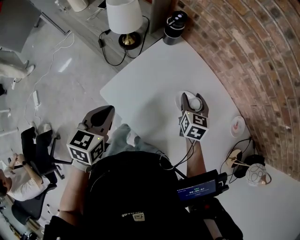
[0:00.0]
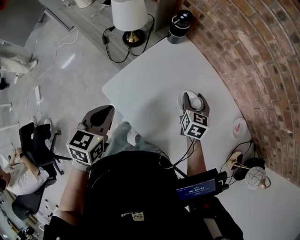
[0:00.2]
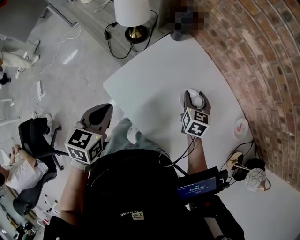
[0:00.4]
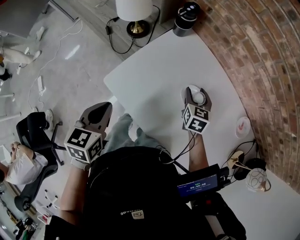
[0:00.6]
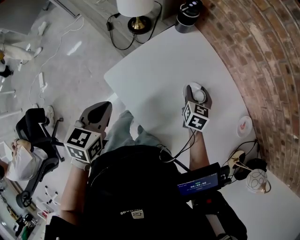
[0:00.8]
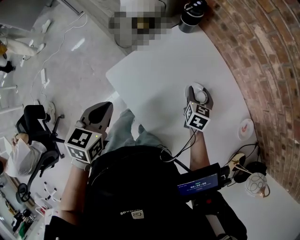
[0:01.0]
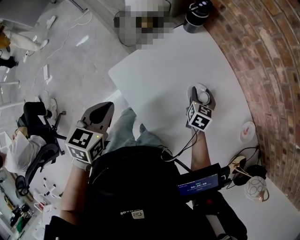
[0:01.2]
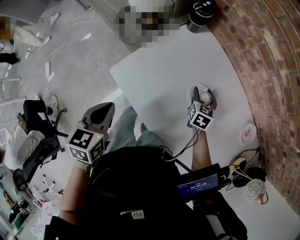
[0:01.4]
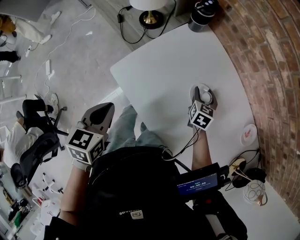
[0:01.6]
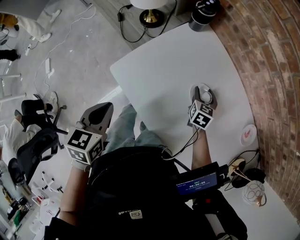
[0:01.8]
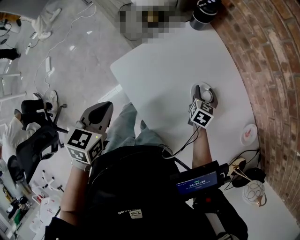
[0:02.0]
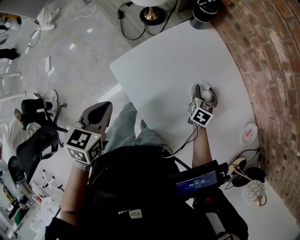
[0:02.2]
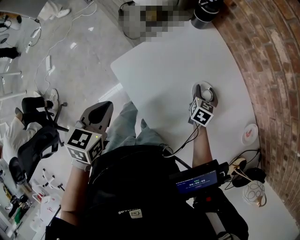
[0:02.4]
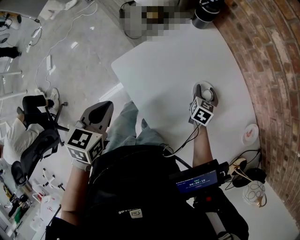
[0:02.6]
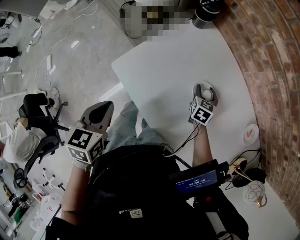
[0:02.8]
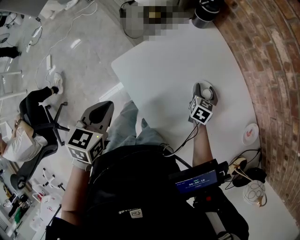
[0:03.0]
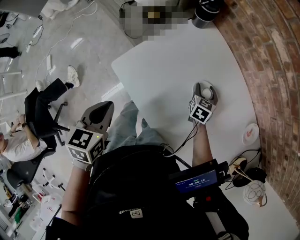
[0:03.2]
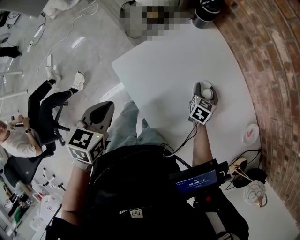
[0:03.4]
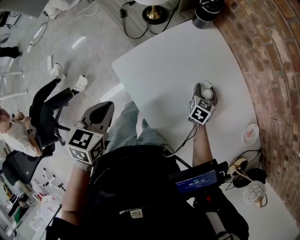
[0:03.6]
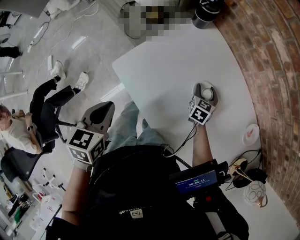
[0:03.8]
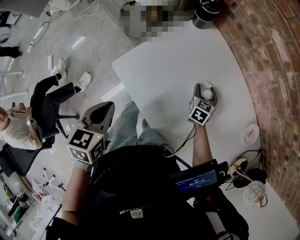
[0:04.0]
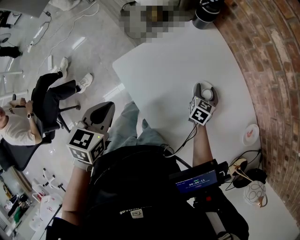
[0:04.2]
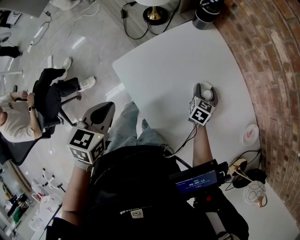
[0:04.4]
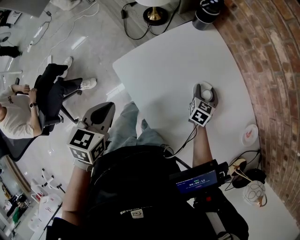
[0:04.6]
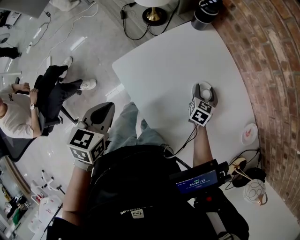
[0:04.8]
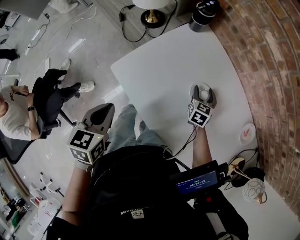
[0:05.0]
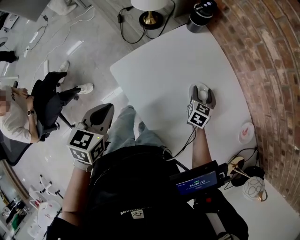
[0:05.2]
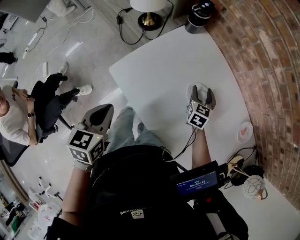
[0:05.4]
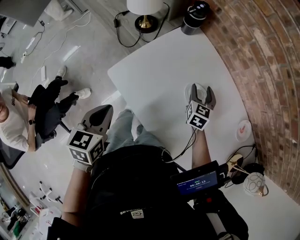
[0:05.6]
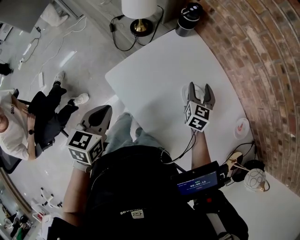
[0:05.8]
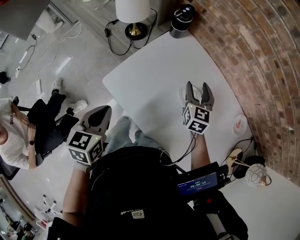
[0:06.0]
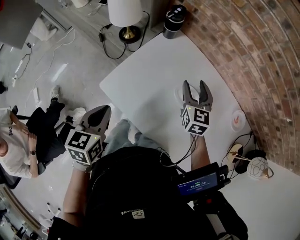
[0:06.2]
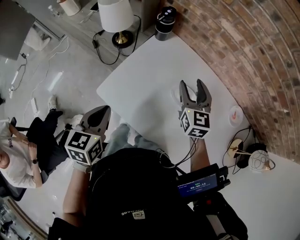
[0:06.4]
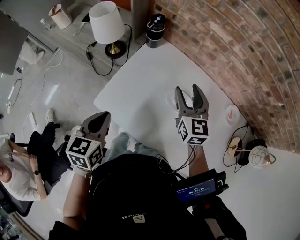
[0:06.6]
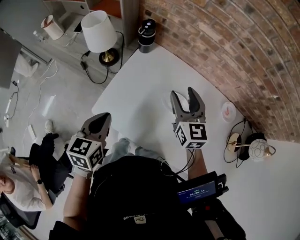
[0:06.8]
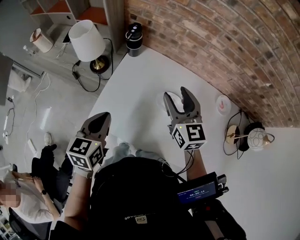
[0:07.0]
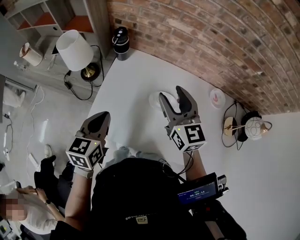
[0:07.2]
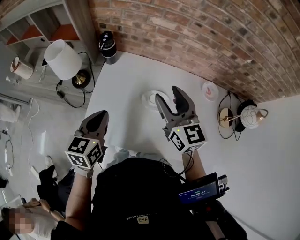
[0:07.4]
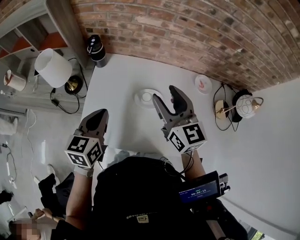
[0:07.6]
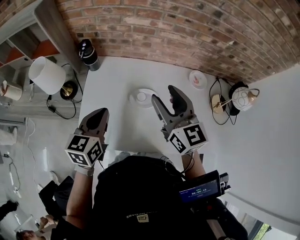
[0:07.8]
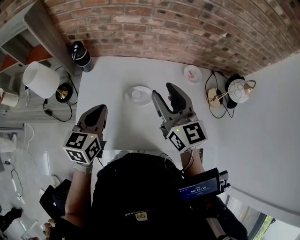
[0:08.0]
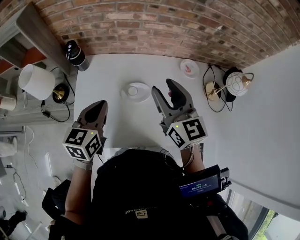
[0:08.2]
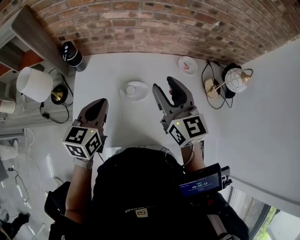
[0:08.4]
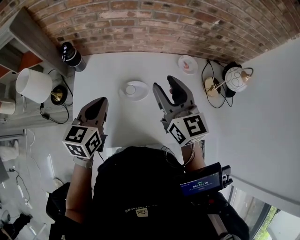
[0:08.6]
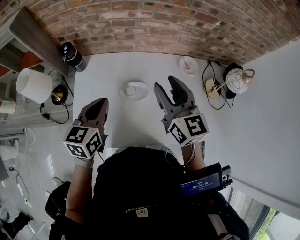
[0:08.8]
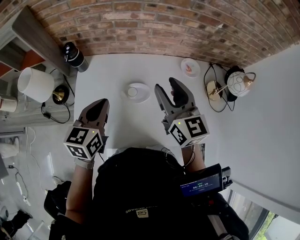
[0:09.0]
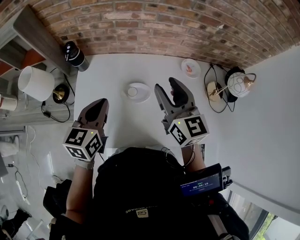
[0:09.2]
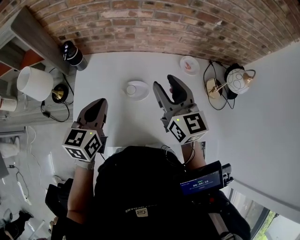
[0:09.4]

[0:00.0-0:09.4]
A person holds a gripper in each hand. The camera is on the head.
0.0 to 1.6 s: The left gripper moves backward, about 5 cm, while the right gripper shifts about 10 cm downward.
1.6 to 3.2 s: The grippers make only small movements.
3.2 to 4.8 s: The two grippers keep their place.
4.8 to 6.2 s: The right gripper is displaced upward by some 20 cm.
6.2 to 7.8 s: The left gripper goes about 20 cm forward, to the right and upward, and turns by some 40 degrees, while the right gripper travels upward and backward by roughly 20 cm, and changes its angle by some 20 degrees.
7.8 to 9.4 s: The two grippers go about 5 cm to the right.

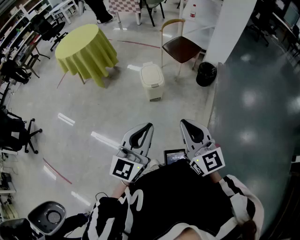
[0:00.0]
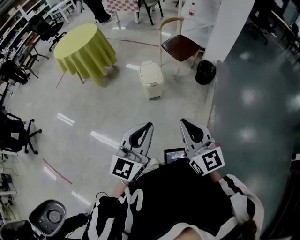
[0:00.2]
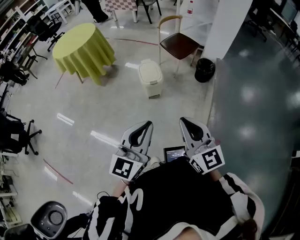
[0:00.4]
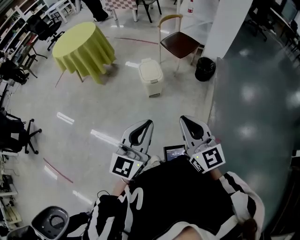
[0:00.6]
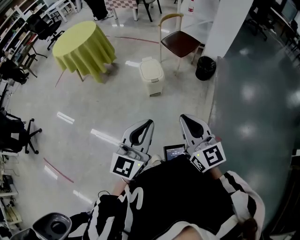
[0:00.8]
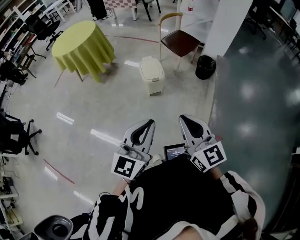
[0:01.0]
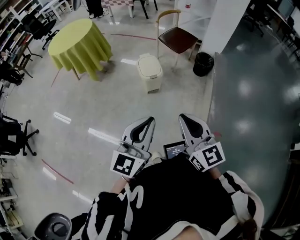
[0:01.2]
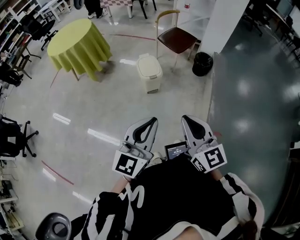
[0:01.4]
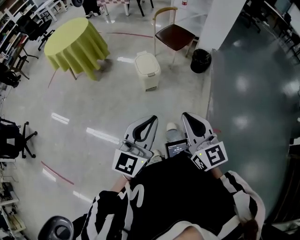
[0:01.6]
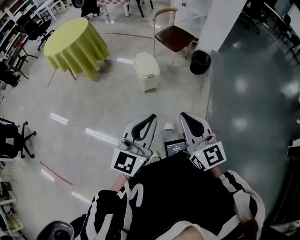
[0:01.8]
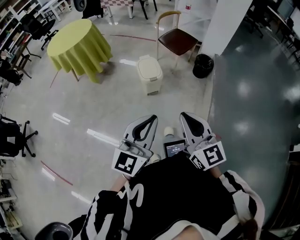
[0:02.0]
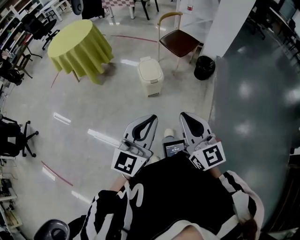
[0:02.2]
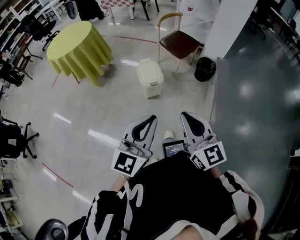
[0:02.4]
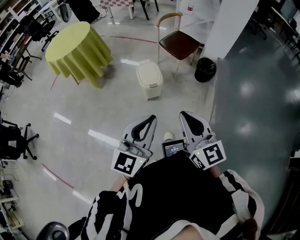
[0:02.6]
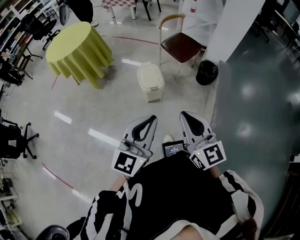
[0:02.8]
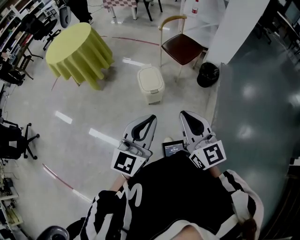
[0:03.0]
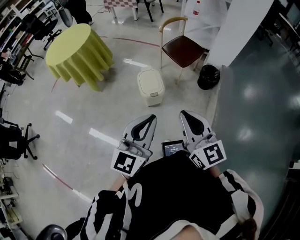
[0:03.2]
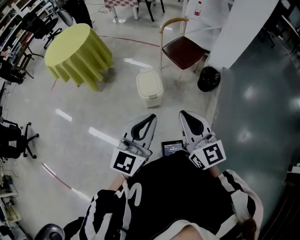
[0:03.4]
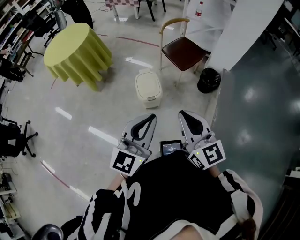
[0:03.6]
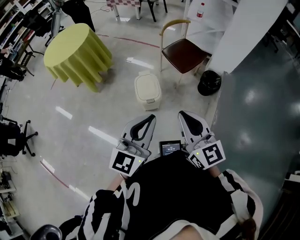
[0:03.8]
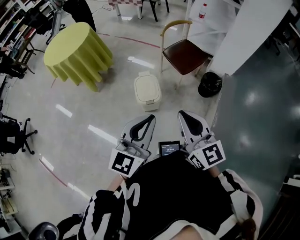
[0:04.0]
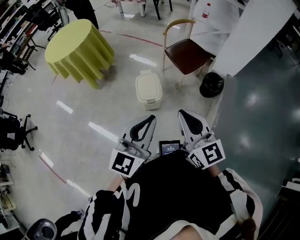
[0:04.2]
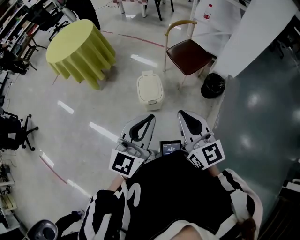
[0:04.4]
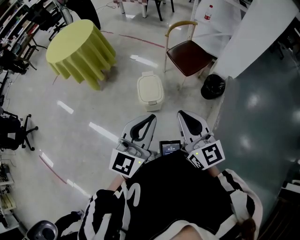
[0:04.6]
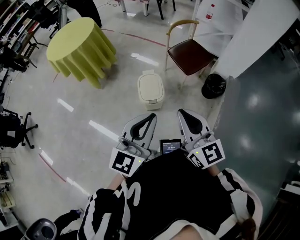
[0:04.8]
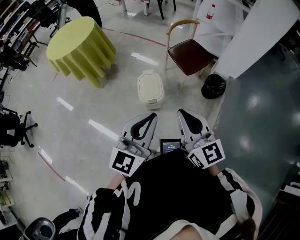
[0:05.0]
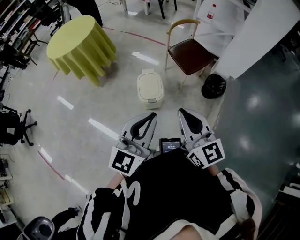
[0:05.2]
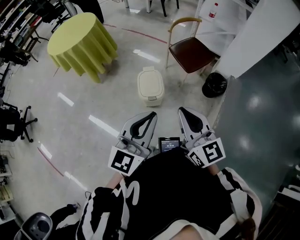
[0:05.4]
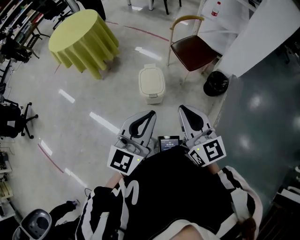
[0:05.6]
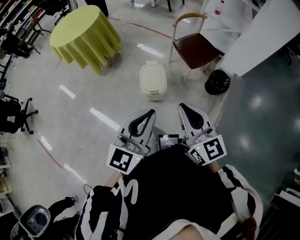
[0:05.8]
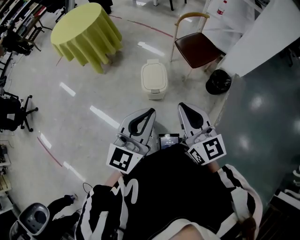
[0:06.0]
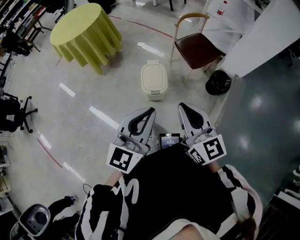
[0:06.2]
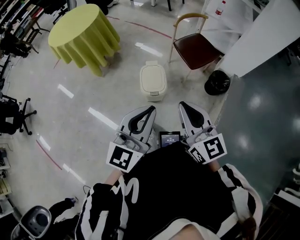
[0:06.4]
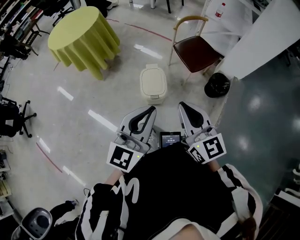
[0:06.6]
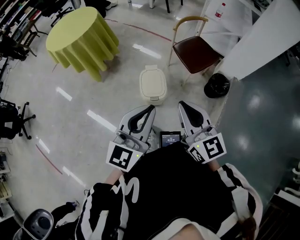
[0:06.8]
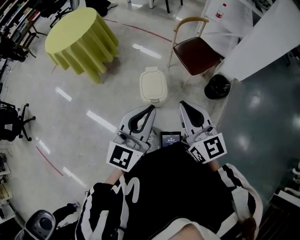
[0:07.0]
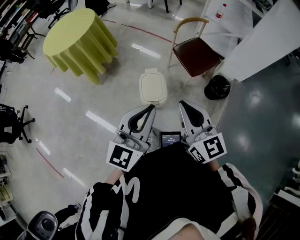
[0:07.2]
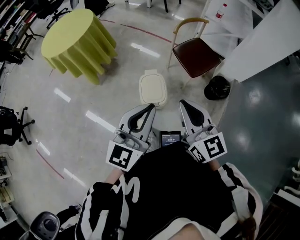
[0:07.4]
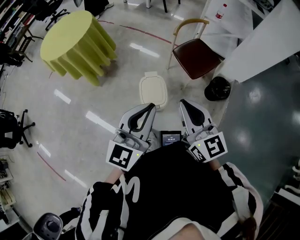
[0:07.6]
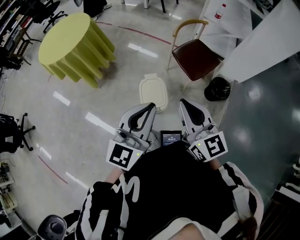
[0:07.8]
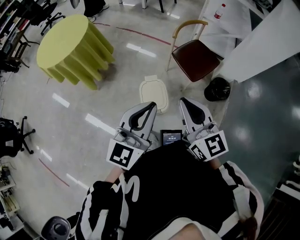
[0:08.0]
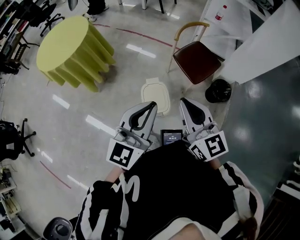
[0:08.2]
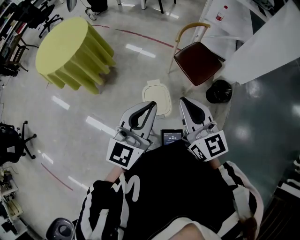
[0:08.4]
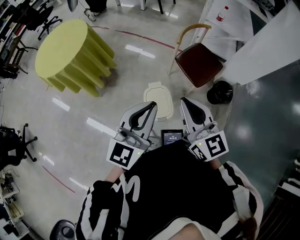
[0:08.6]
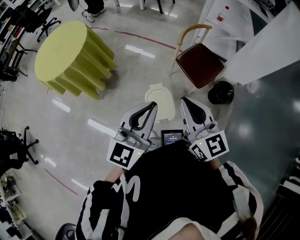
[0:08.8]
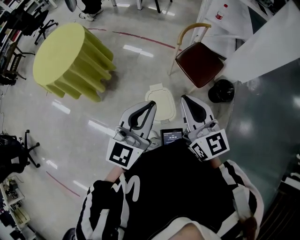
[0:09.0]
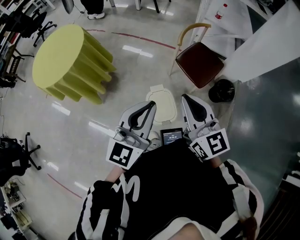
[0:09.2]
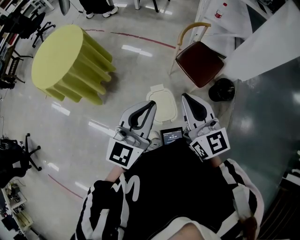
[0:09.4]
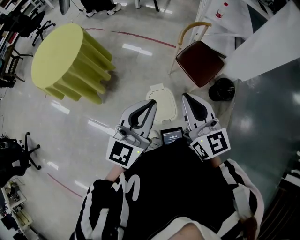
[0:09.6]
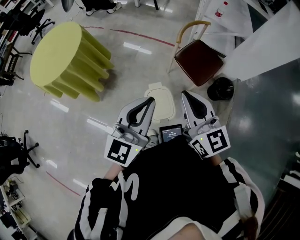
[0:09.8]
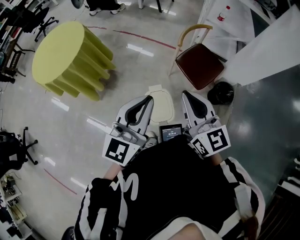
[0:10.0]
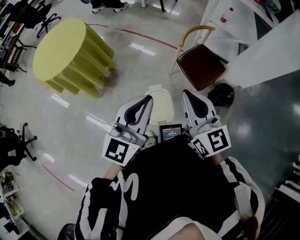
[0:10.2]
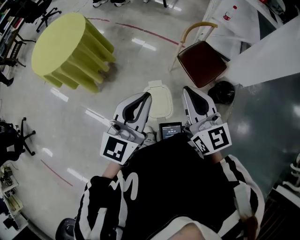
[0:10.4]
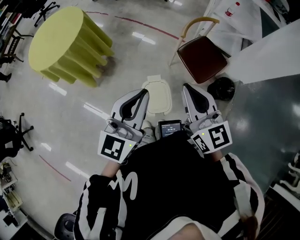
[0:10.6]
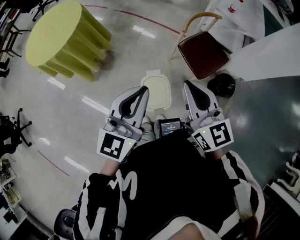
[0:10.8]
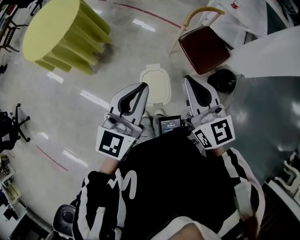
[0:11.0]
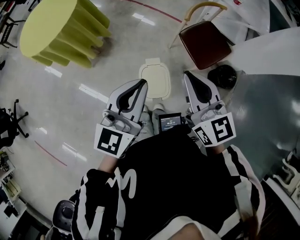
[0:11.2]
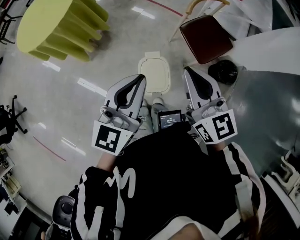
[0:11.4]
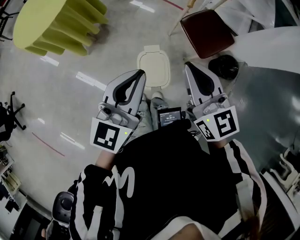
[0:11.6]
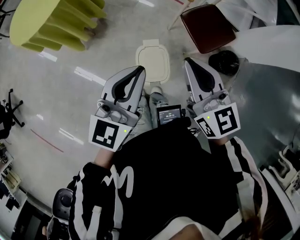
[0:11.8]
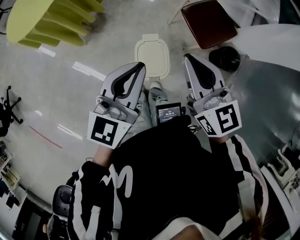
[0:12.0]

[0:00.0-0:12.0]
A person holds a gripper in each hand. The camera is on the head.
0.0 to 1.6 s: The grippers stay close to where they were, moving slightly.
1.6 to 3.0 s: The two grippers go roughly 15 cm forward.
3.0 to 4.4 s: The grippers both shift forward by about 15 cm.
4.4 to 6.0 s: The grippers move only a little.
6.0 to 7.6 s: Both grippers move forward, about 15 cm.
7.6 to 9.0 s: Both grippers move forward and to the left, about 15 cm.
9.0 to 10.4 s: The grippers move only a little.
10.4 to 12.0 s: The two grippers go roughly 10 cm downward.

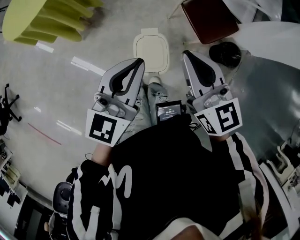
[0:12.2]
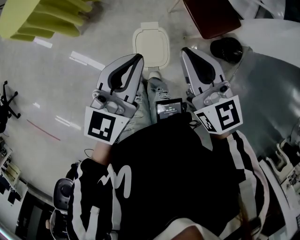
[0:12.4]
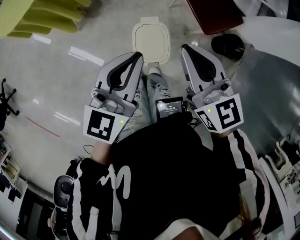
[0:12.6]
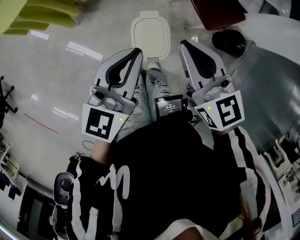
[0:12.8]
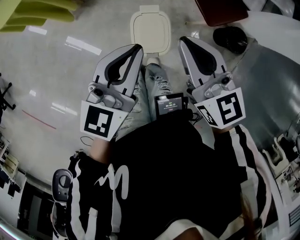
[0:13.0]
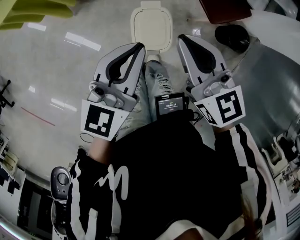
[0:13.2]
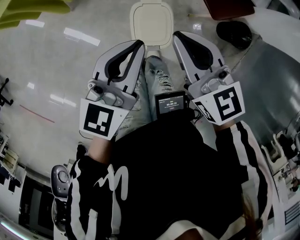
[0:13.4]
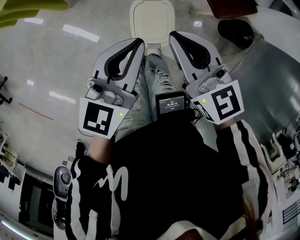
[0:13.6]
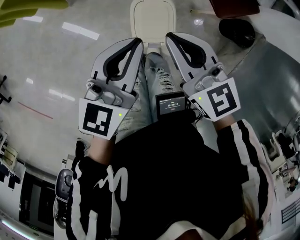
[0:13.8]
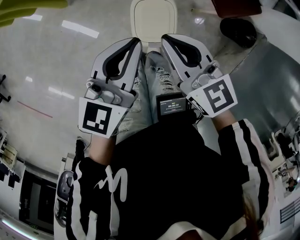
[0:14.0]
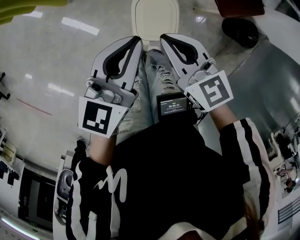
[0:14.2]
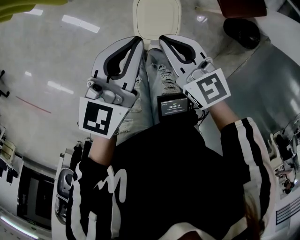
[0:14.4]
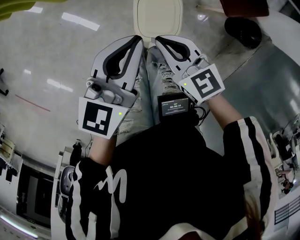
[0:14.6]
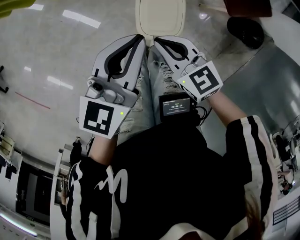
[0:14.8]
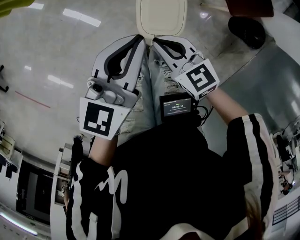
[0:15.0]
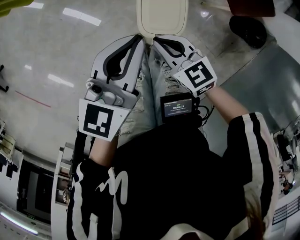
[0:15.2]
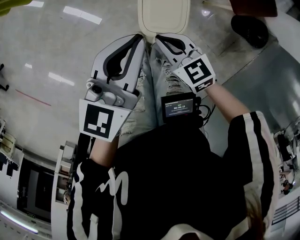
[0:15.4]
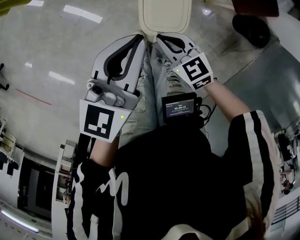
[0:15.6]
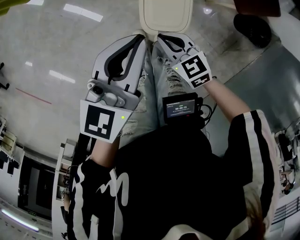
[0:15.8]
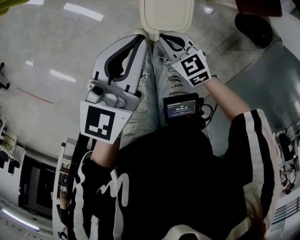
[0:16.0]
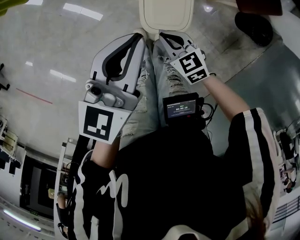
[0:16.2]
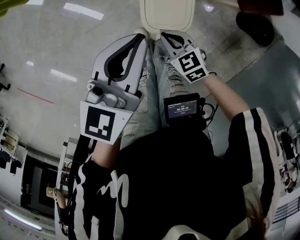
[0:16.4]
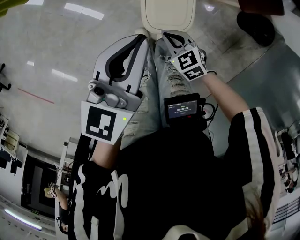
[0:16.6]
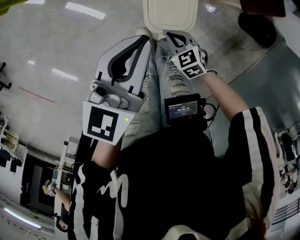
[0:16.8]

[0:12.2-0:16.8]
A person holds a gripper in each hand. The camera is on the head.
12.2 to 13.8 s: The grippers both shift downward by roughly 15 cm.
13.8 to 15.2 s: The left gripper heads downward, covering roughly 5 cm, while the right gripper is displaced downward by roughly 15 cm, and rotates some 20 degrees.
15.2 to 16.8 s: The right gripper shifts some 15 cm downward, and changes its angle by approximately 20 degrees.
